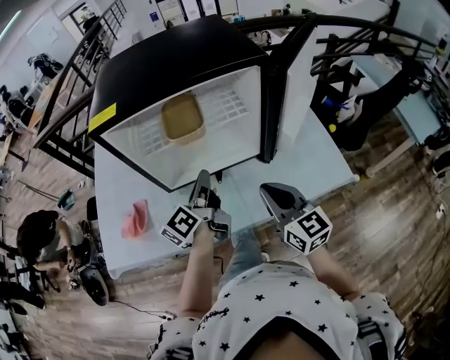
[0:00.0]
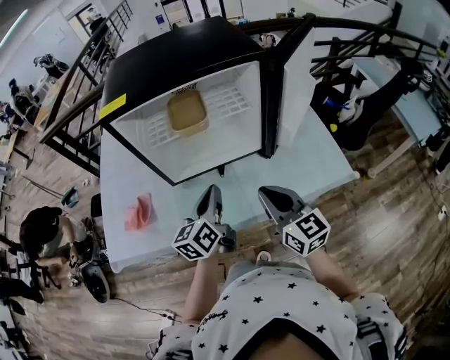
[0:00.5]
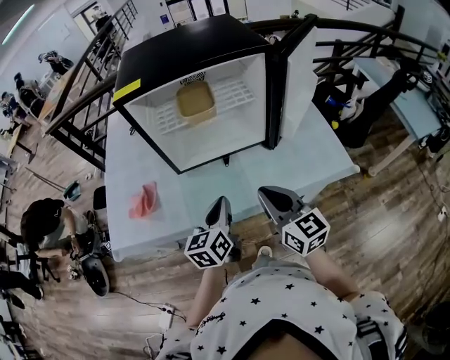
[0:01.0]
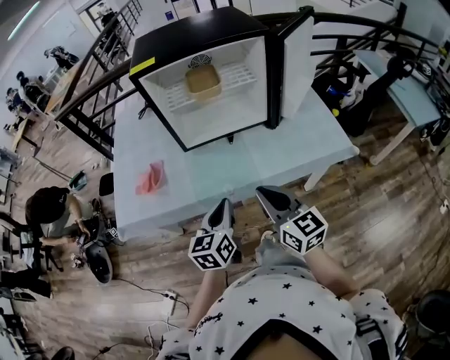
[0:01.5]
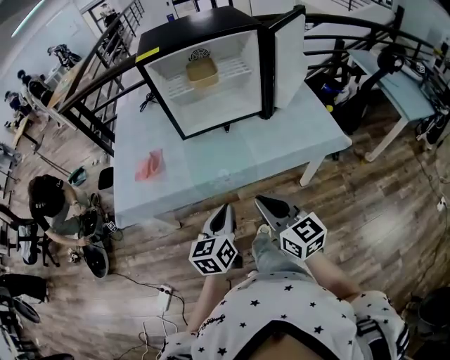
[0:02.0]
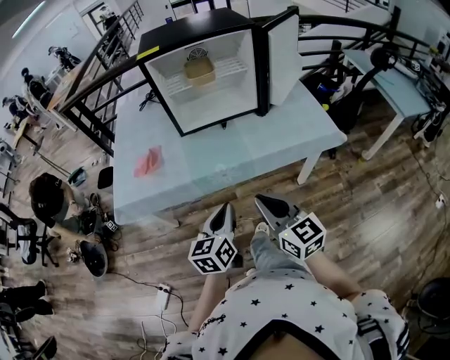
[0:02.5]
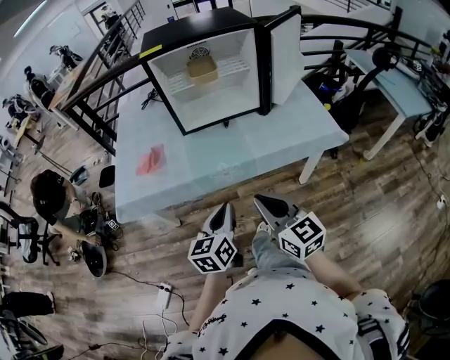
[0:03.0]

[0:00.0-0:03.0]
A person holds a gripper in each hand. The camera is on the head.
0:00.0 to 0:01.5: The right gripper is displaced backward and to the left by roughly 20 cm, while the left gripper is displaced backward by roughly 25 cm, and turns by approximately 40 degrees.
0:01.5 to 0:03.0: The two grippers go some 10 cm backward.

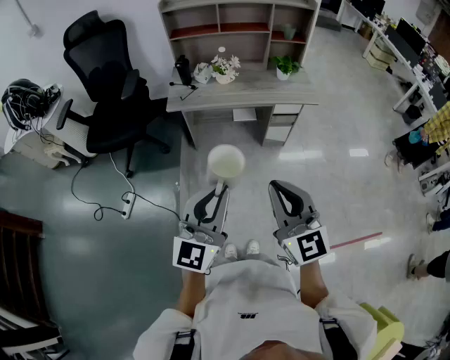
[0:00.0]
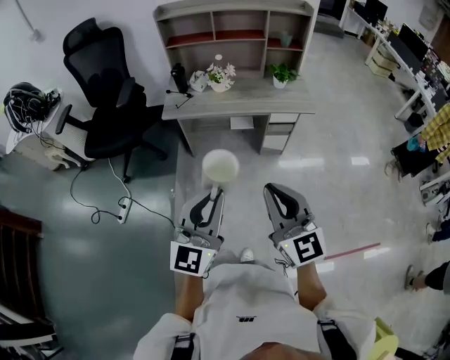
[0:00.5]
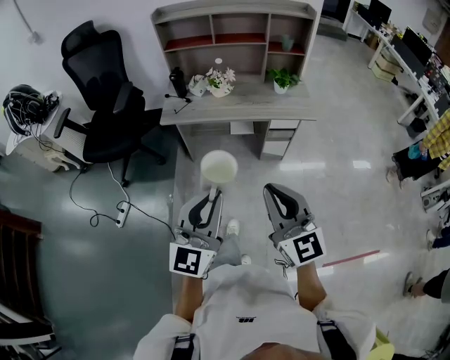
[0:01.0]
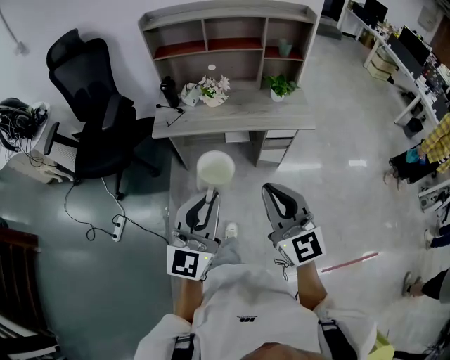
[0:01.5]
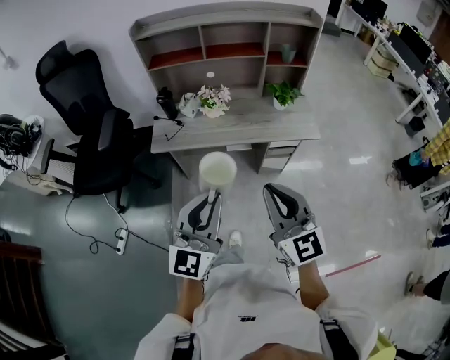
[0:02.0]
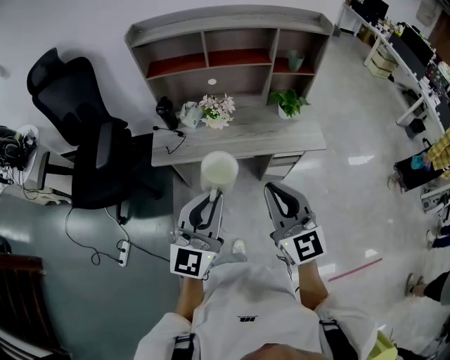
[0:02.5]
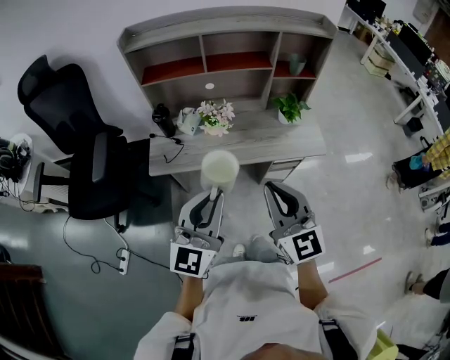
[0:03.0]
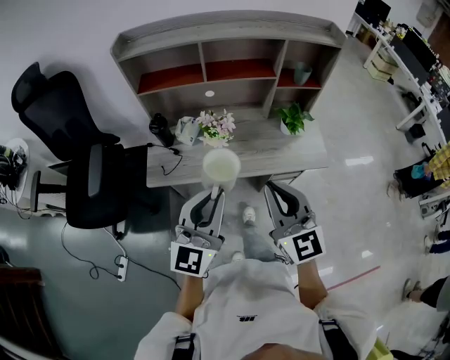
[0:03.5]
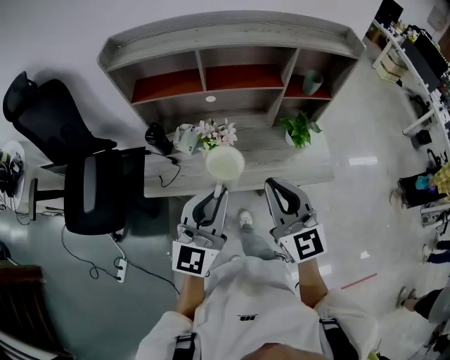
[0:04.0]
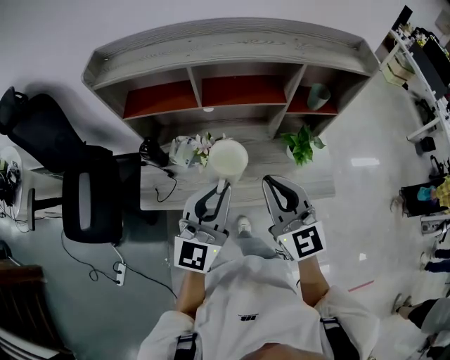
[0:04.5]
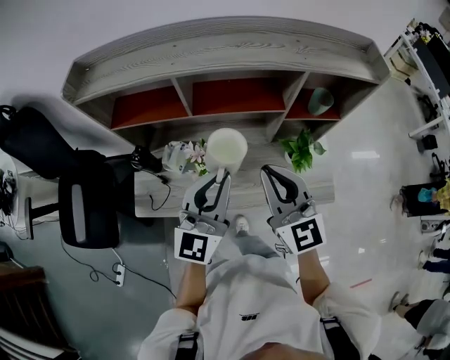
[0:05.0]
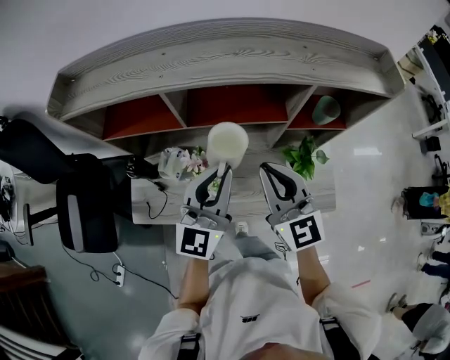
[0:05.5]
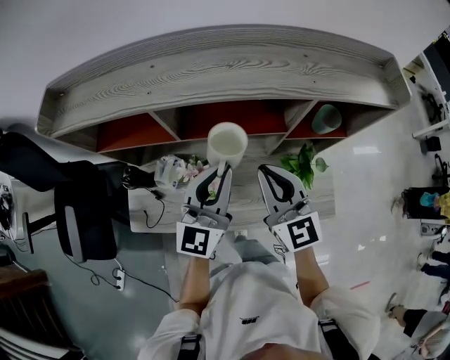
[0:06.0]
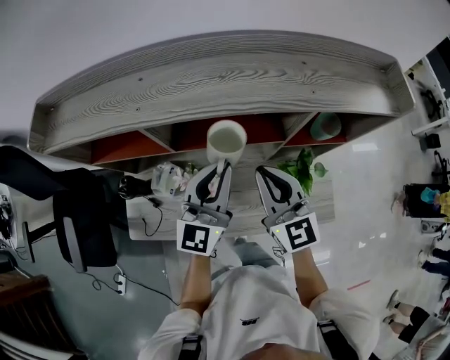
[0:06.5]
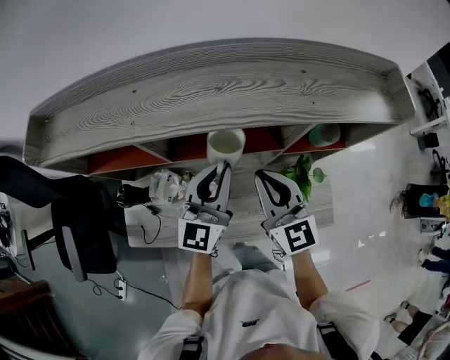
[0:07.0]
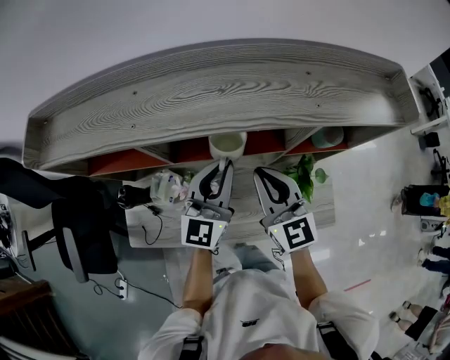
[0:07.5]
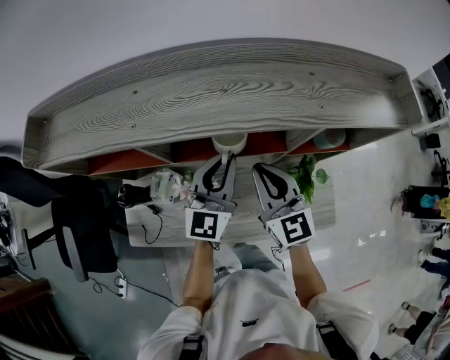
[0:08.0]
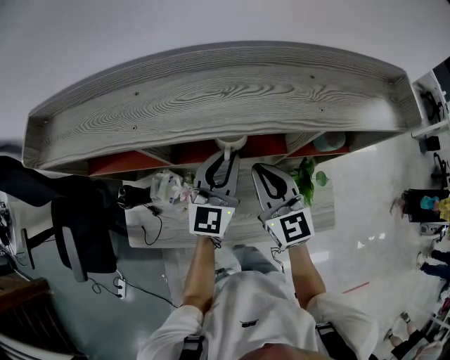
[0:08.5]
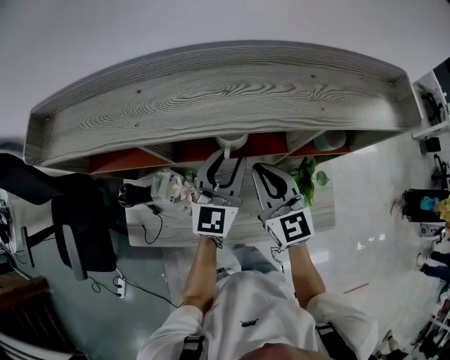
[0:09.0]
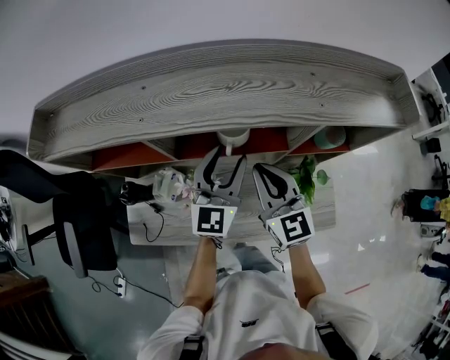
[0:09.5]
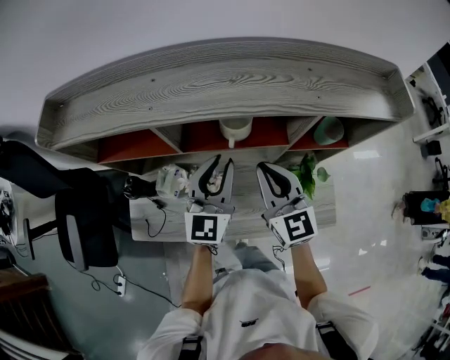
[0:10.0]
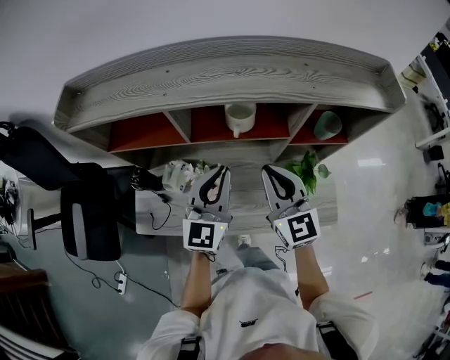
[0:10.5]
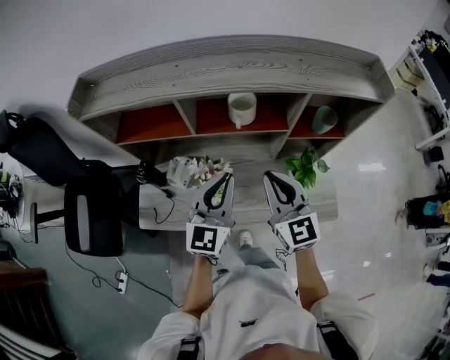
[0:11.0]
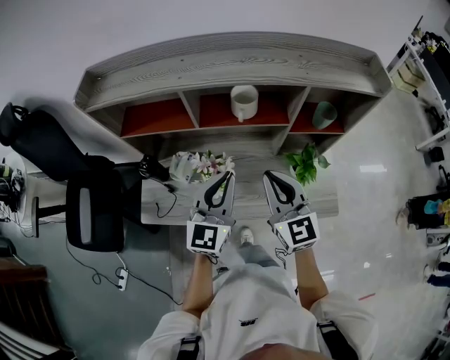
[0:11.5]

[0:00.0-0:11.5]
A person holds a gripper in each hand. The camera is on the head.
0:00.0 to 0:02.0: Both grippers travel together forward, some 25 cm.
0:02.0 to 0:04.0: The two grippers go some 30 cm forward.
0:04.0 to 0:06.0: Both grippers move forward, some 25 cm.
0:06.0 to 0:07.5: Both grippers move forward, roughly 5 cm.
0:07.5 to 0:09.5: The left gripper opens its fingers.
0:09.5 to 0:11.5: Both grippers move backward, approximately 15 cm. The left gripper closes its fingers.

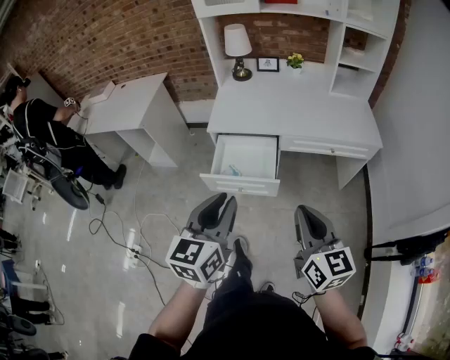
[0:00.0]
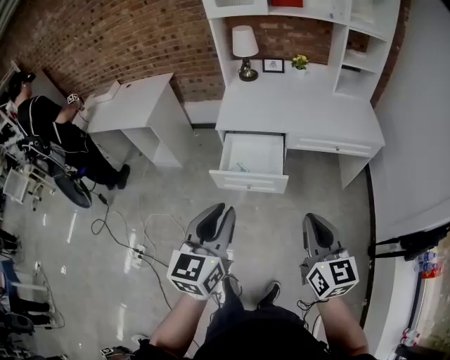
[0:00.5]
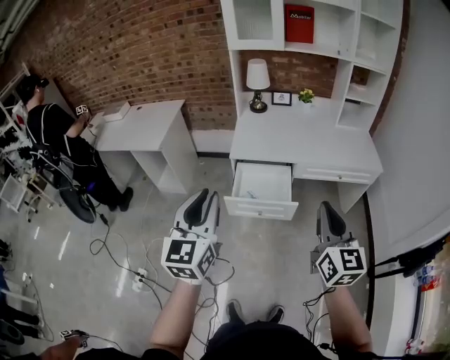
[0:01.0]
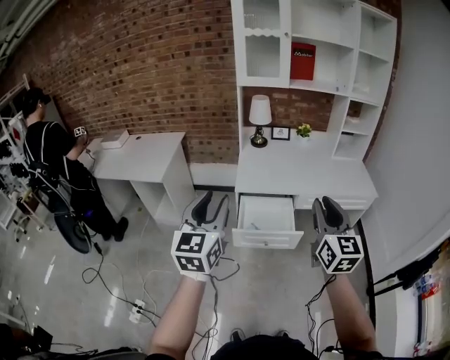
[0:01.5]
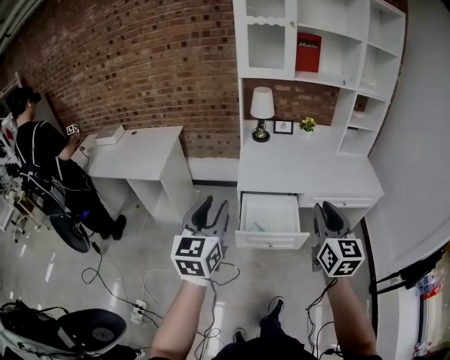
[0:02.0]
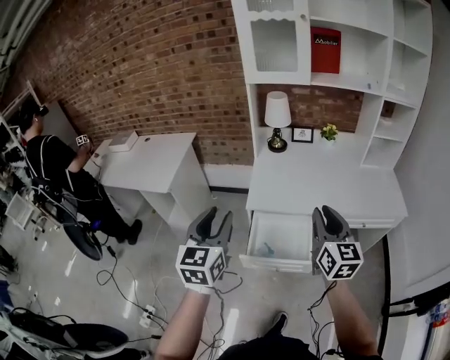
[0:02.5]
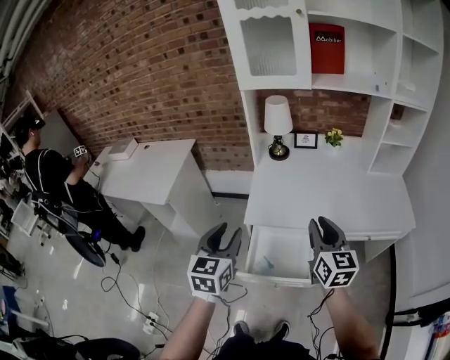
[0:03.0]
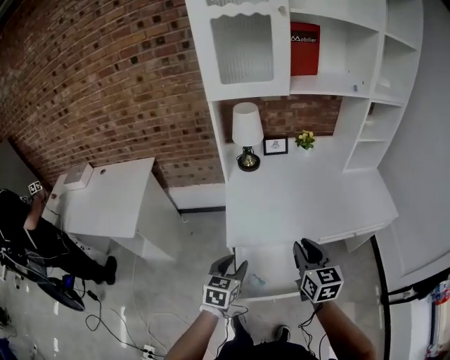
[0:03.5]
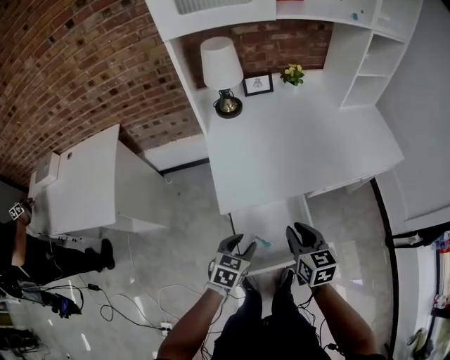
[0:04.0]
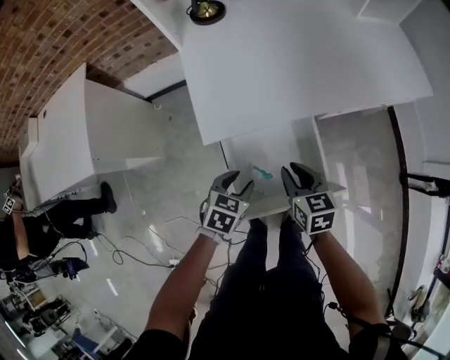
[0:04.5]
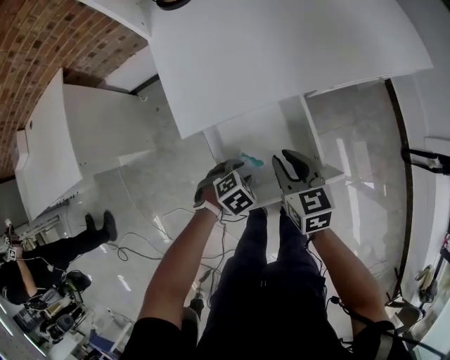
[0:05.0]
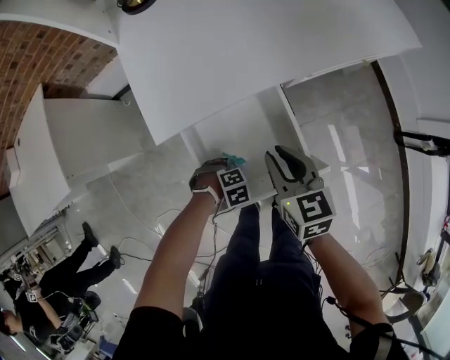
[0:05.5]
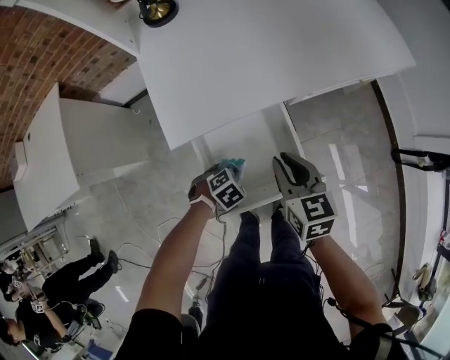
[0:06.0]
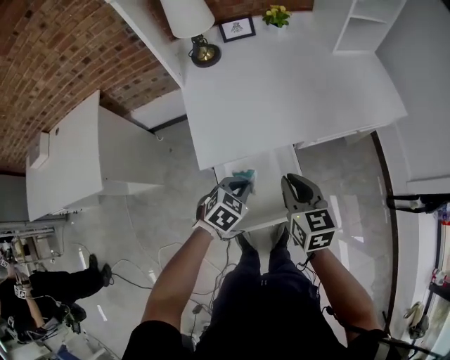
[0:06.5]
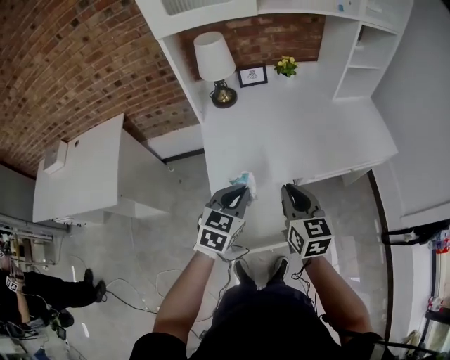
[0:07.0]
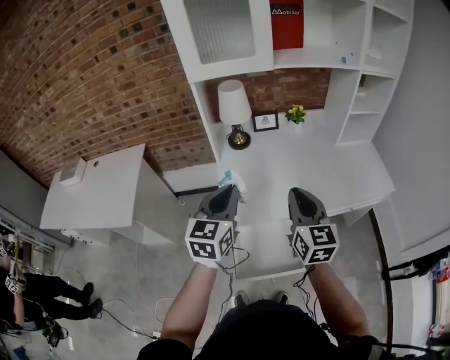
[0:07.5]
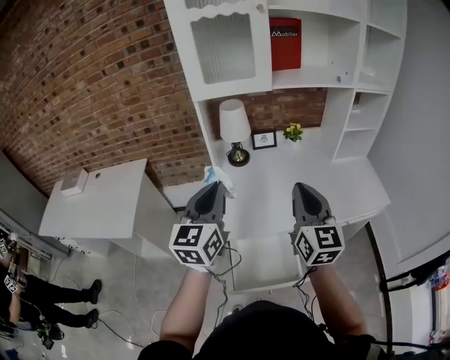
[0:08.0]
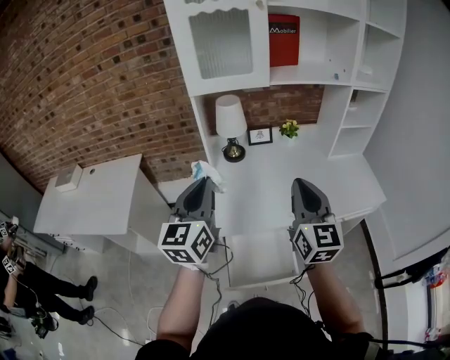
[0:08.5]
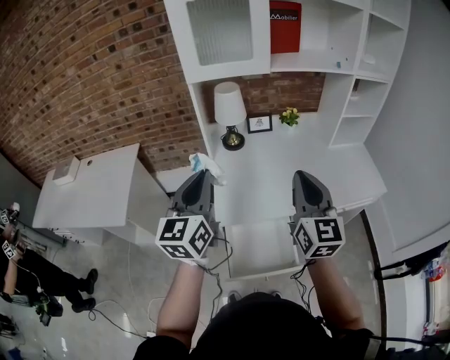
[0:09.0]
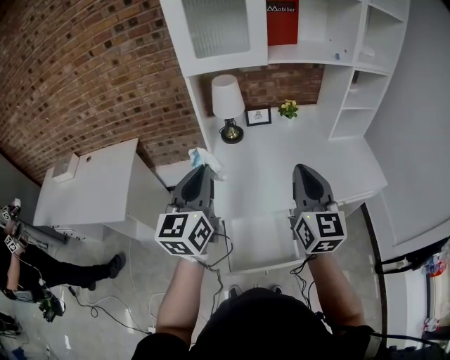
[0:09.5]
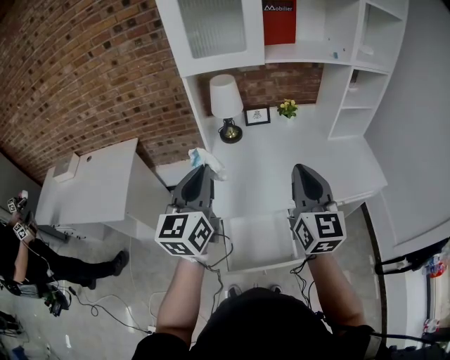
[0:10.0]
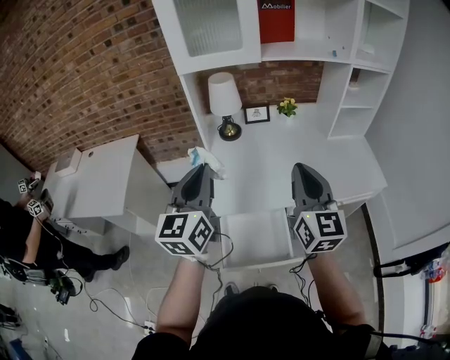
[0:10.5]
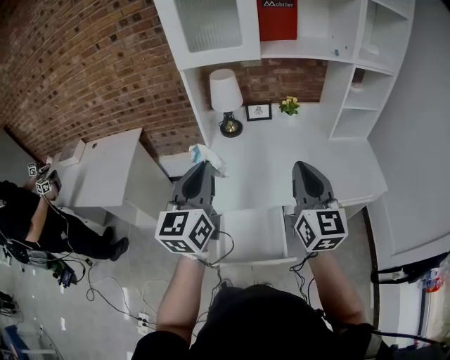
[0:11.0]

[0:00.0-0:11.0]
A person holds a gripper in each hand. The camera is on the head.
0:00.0 to 0:02.0: The left gripper moves to the left, about 25 cm; the right gripper goes some 20 cm to the left, forward and upward, swivels about 20 degrees, and opens up.
0:02.0 to 0:03.5: The grippers both shift forward and downward by roughly 35 cm. The left gripper swivels roughly 30 degrees.
0:03.5 to 0:05.5: The left gripper moves downward, roughly 40 cm, and points its fingers about 50 degrees further downward. Meanwhile the right gripper shifts some 25 cm downward.
0:05.5 to 0:07.5: The left gripper heads upward, covering about 60 cm, and angles its fingers upward, by about 70 degrees. The right gripper shifts some 35 cm upward, and swivels some 30 degrees.
0:07.5 to 0:09.0: Both grippers move upward, some 10 cm.
0:09.0 to 0:11.0: The grippers both shift to the right by roughly 5 cm.

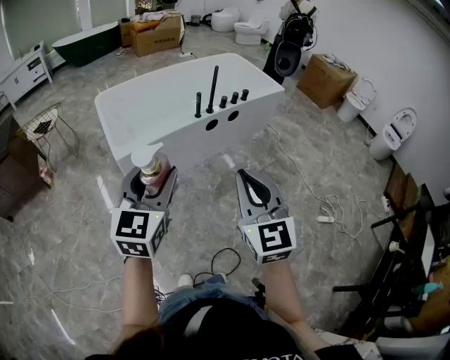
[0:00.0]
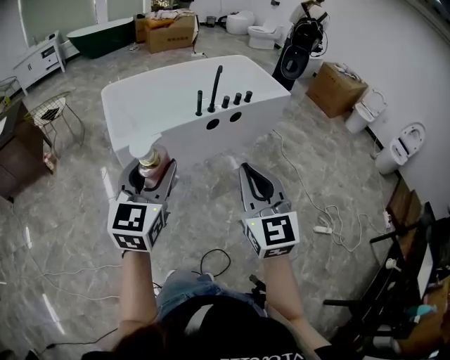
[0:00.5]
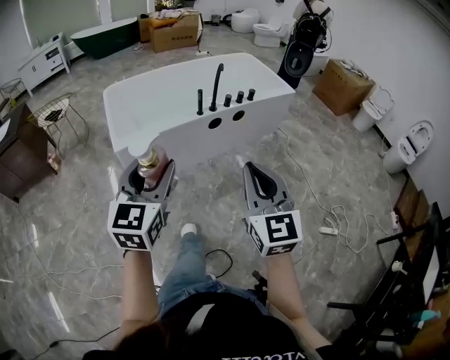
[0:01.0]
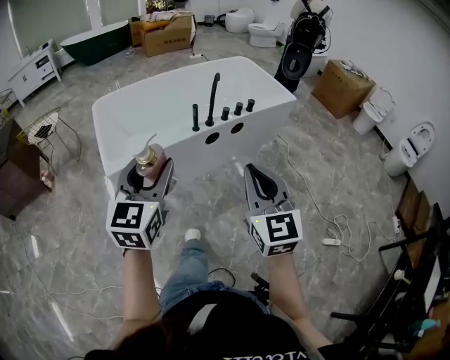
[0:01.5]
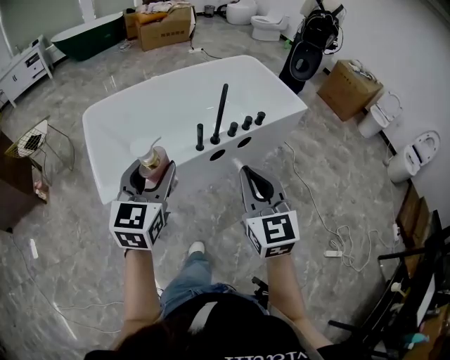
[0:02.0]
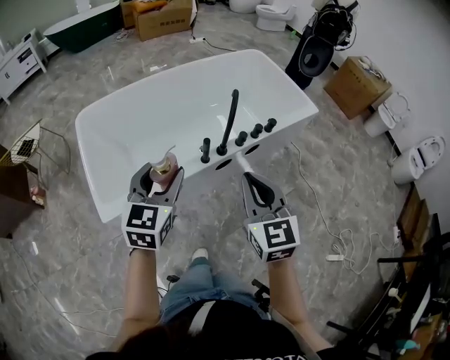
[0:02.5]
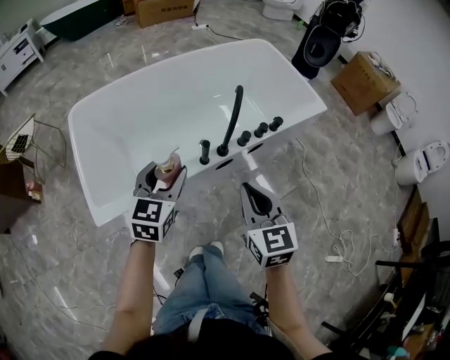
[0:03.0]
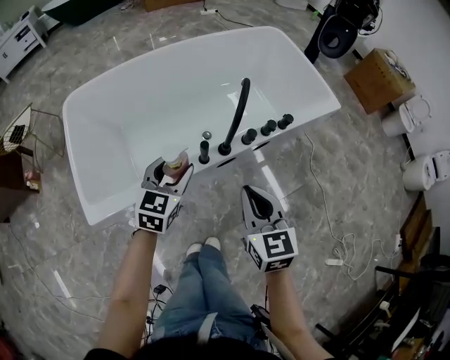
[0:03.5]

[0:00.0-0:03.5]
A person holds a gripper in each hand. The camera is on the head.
0:00.0 to 0:02.0: The grippers both shift forward by approximately 35 cm.
0:02.0 to 0:03.5: Both grippers travel together forward and downward, about 30 cm. The right gripper rotates roughly 20 degrees.
